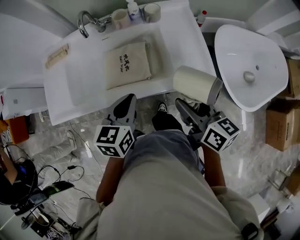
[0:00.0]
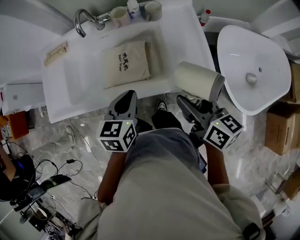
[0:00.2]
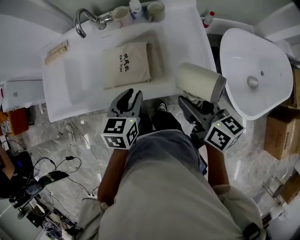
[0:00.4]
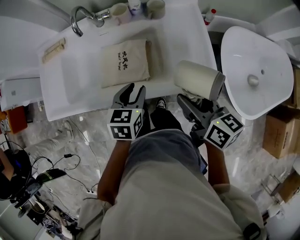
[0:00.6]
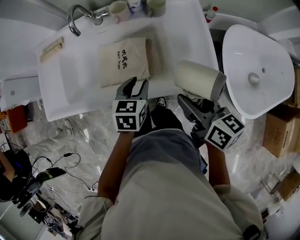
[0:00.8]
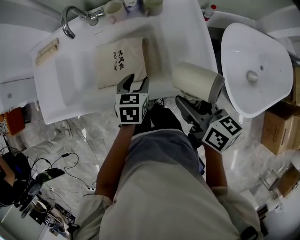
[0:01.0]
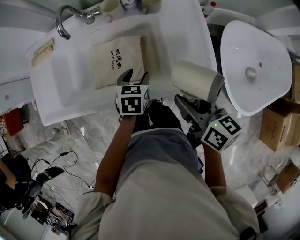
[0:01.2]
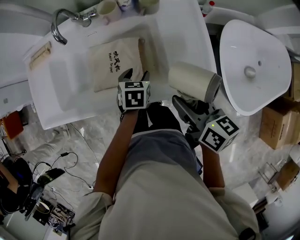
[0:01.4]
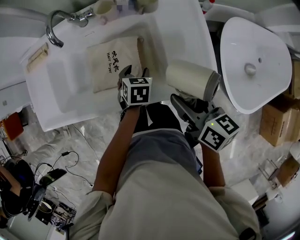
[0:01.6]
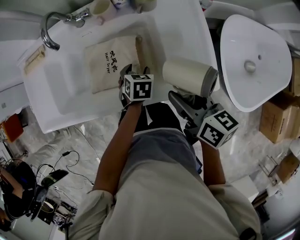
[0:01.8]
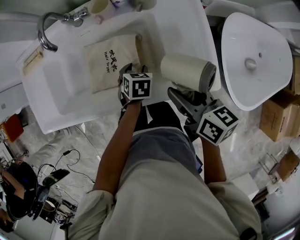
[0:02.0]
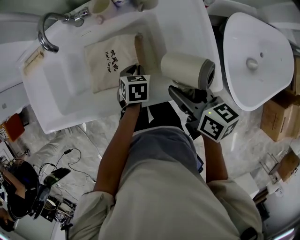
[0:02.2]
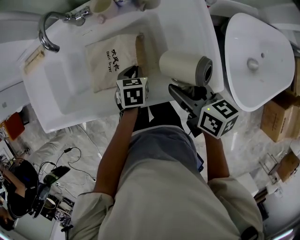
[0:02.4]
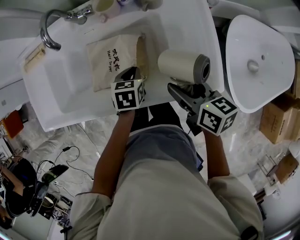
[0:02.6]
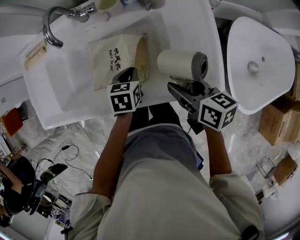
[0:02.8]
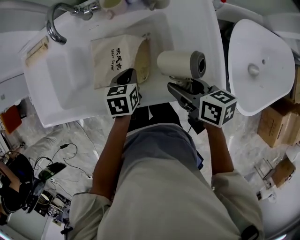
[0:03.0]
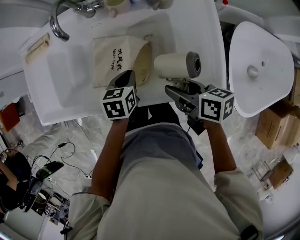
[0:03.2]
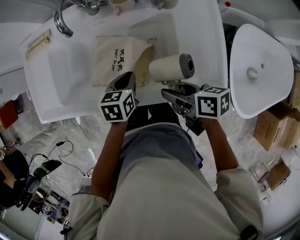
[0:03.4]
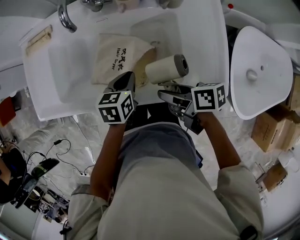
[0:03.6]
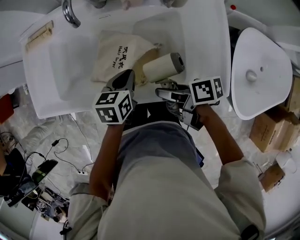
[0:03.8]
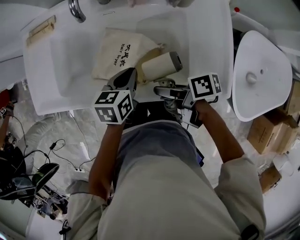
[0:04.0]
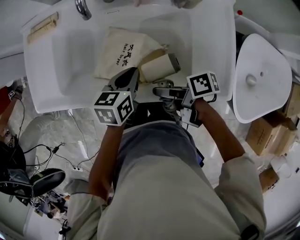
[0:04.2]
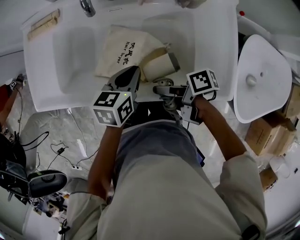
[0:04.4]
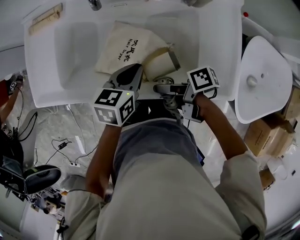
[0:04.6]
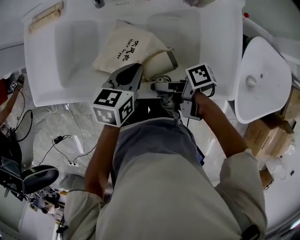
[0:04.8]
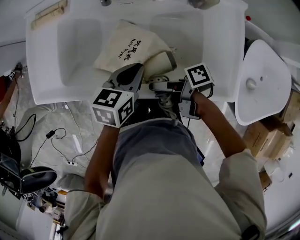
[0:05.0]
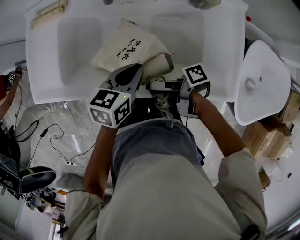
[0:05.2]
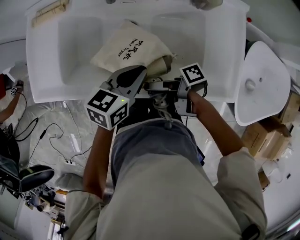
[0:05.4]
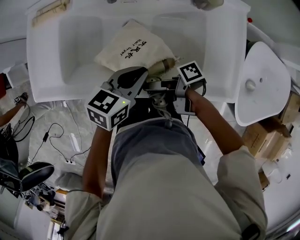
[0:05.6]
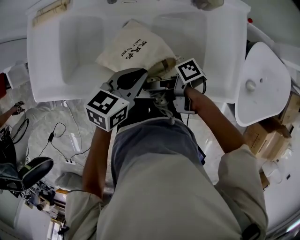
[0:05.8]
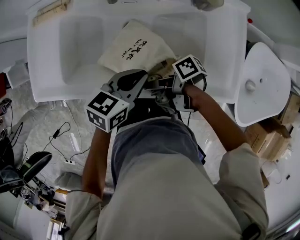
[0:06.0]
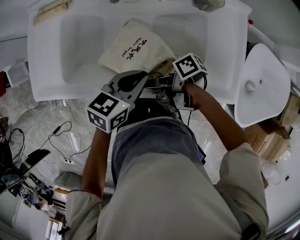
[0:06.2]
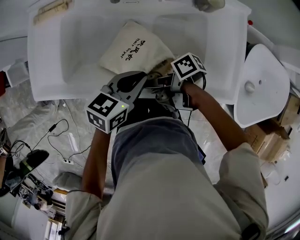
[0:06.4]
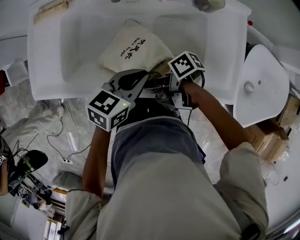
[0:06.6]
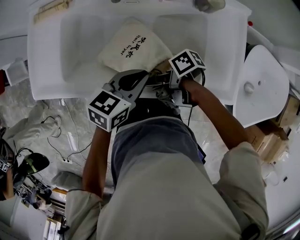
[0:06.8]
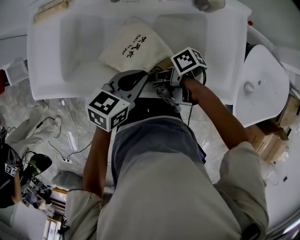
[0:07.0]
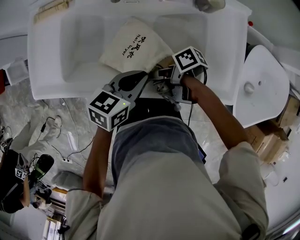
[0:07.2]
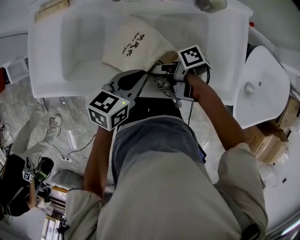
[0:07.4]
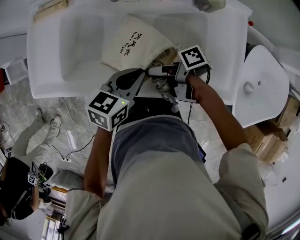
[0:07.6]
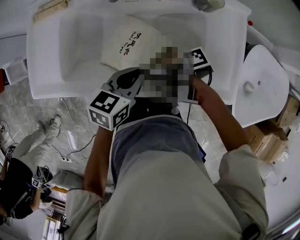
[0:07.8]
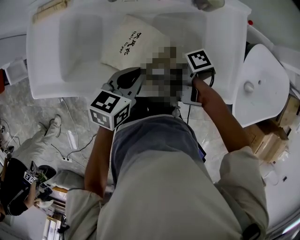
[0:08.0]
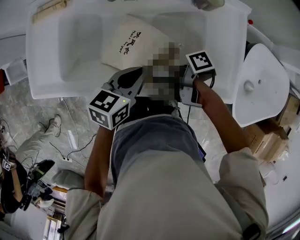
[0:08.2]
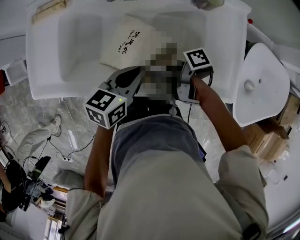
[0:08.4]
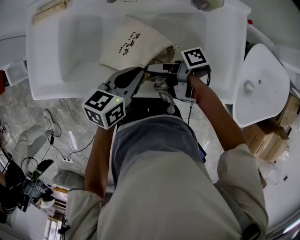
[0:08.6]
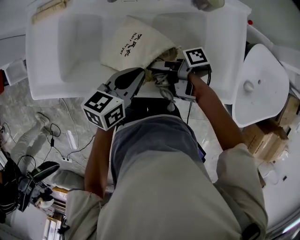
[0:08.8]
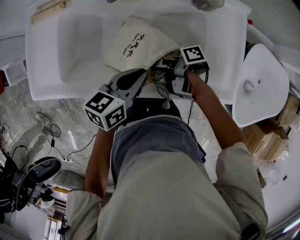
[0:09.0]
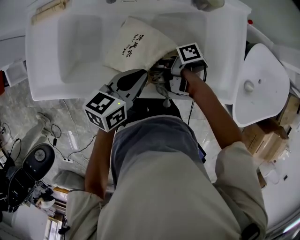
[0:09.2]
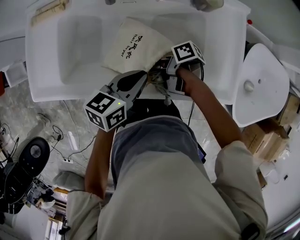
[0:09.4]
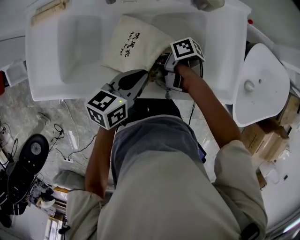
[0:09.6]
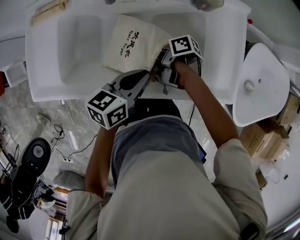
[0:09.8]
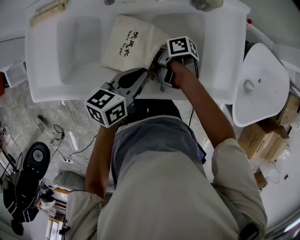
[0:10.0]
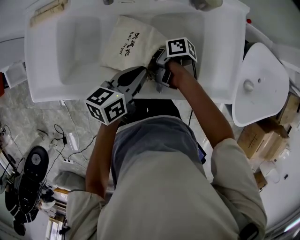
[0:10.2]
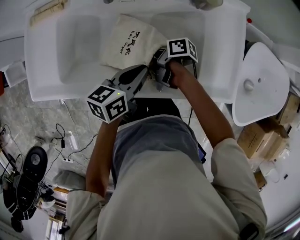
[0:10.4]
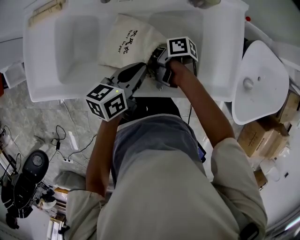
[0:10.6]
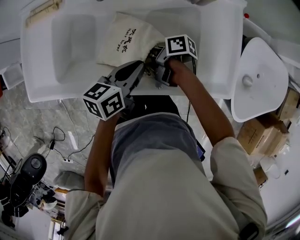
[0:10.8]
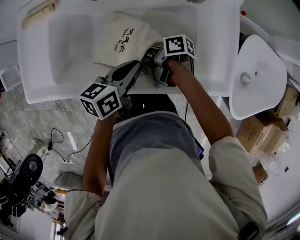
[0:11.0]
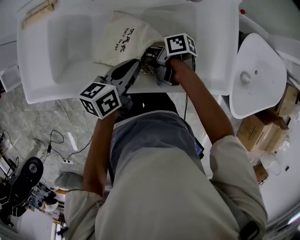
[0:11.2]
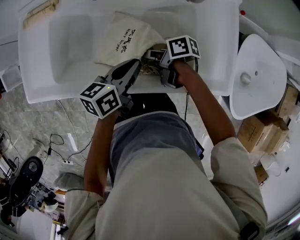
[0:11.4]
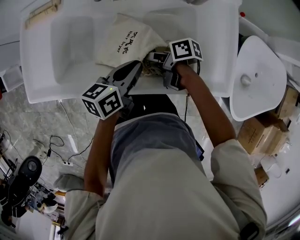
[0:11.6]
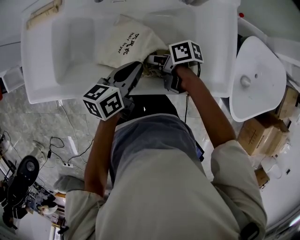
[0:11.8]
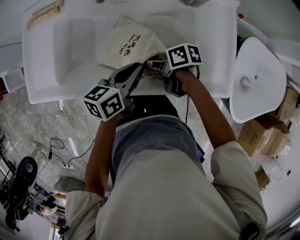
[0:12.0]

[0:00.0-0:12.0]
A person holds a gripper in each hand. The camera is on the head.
0:00.0 to 0:01.6: The left gripper shifts about 20 cm downward, swivels approximately 30 degrees, and opens up.
0:01.6 to 0:03.0: The left gripper moves about 5 cm, and closes up.
0:03.0 to 0:04.4: The left gripper changes place by roughly 10 cm.

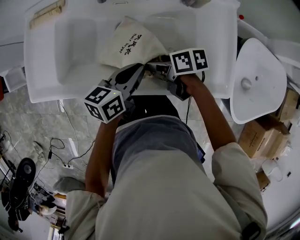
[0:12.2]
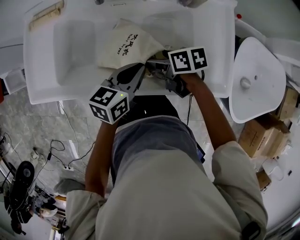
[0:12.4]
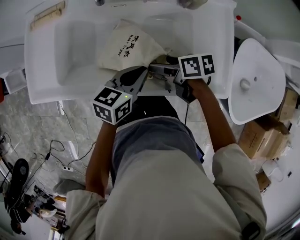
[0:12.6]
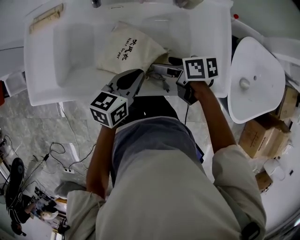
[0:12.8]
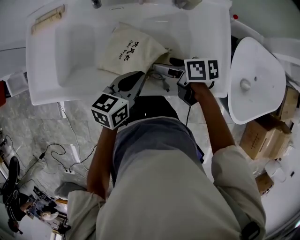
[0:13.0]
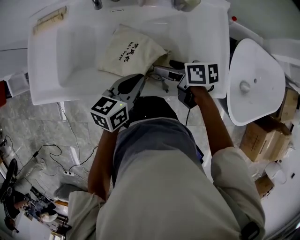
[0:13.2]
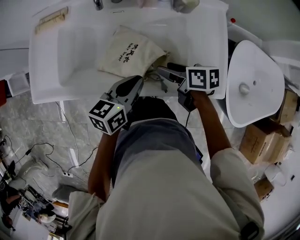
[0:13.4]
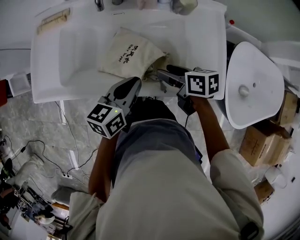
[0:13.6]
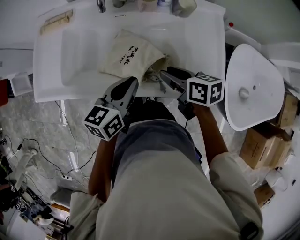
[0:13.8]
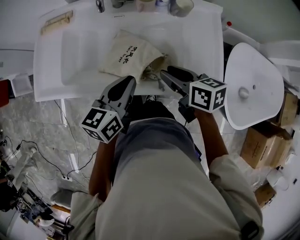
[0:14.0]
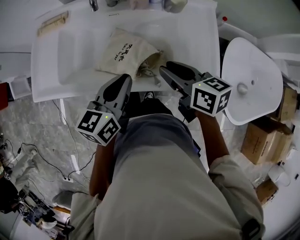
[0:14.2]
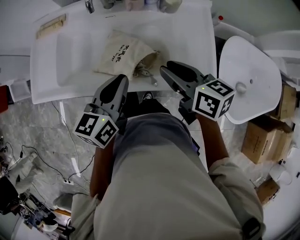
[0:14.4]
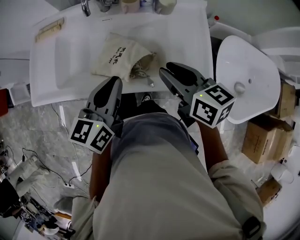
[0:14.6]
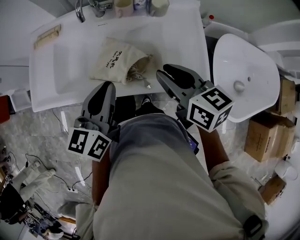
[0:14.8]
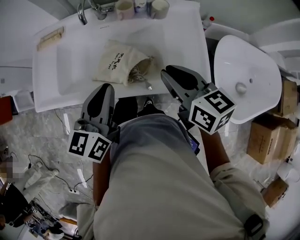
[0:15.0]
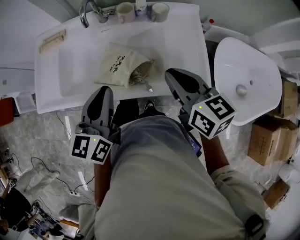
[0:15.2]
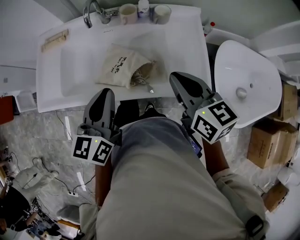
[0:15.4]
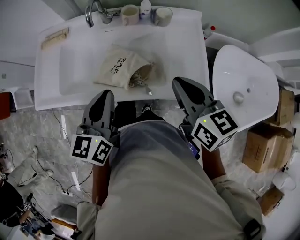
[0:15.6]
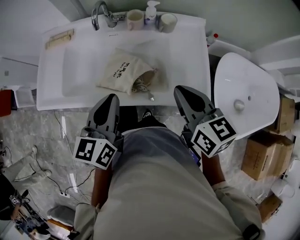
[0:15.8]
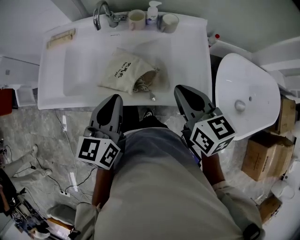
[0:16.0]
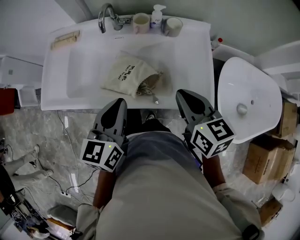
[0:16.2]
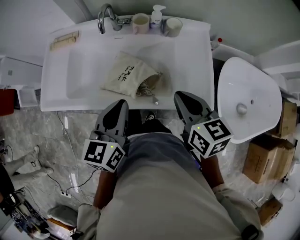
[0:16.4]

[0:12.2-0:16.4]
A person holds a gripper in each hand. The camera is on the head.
0:12.2 to 0:13.6: The left gripper changes place by roughly 5 cm.
0:13.6 to 0:15.0: The left gripper travels upward by roughly 15 cm, and rotates about 20 degrees.

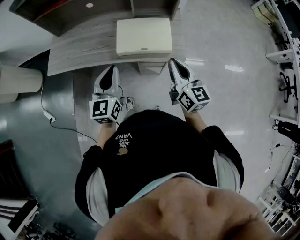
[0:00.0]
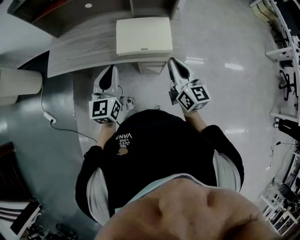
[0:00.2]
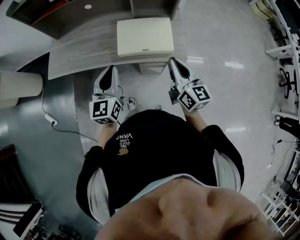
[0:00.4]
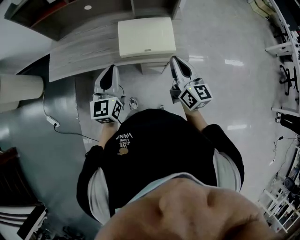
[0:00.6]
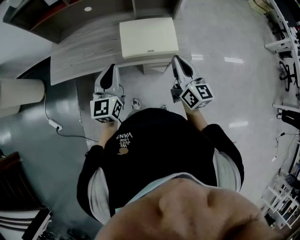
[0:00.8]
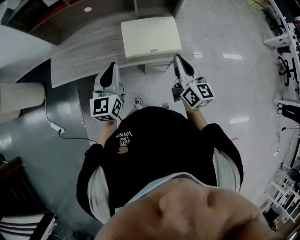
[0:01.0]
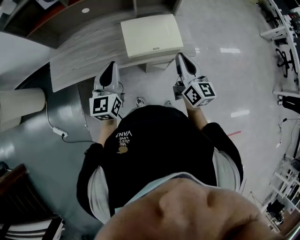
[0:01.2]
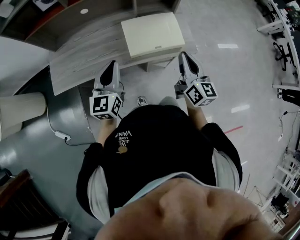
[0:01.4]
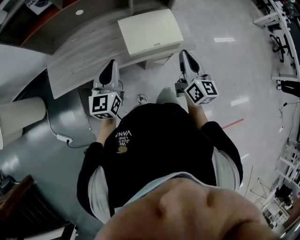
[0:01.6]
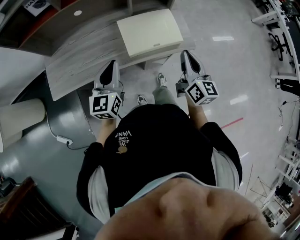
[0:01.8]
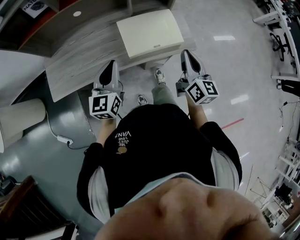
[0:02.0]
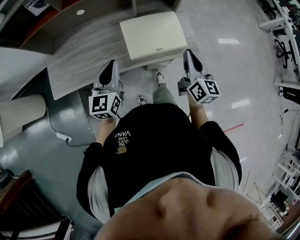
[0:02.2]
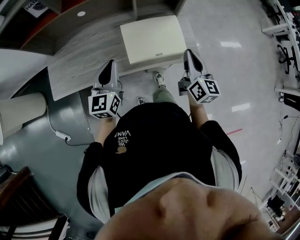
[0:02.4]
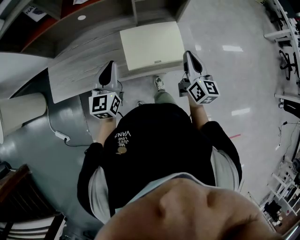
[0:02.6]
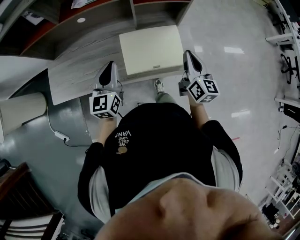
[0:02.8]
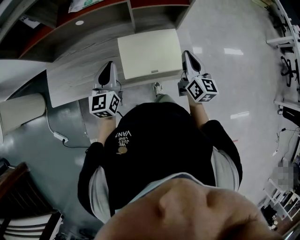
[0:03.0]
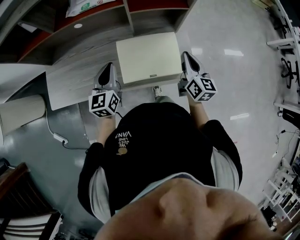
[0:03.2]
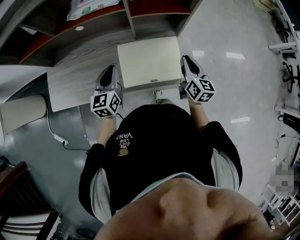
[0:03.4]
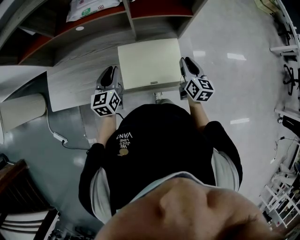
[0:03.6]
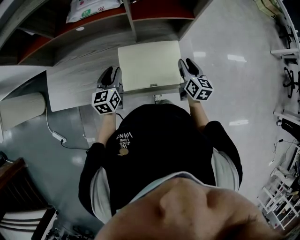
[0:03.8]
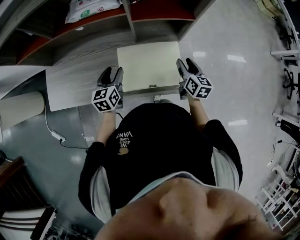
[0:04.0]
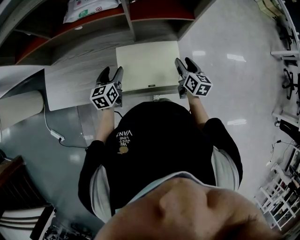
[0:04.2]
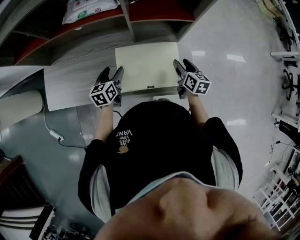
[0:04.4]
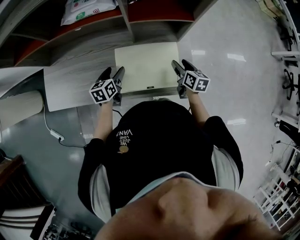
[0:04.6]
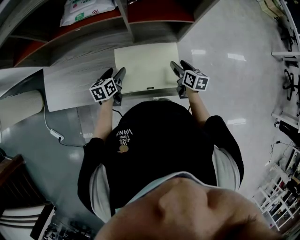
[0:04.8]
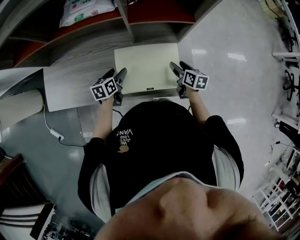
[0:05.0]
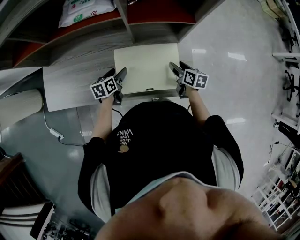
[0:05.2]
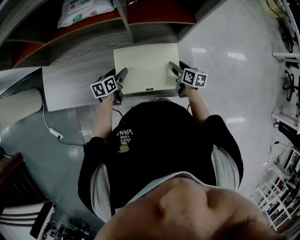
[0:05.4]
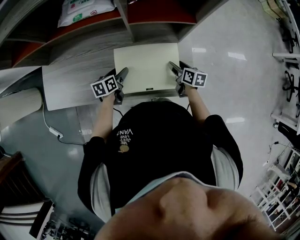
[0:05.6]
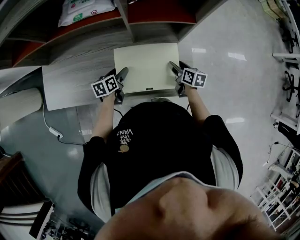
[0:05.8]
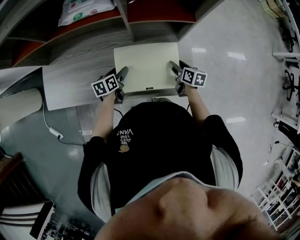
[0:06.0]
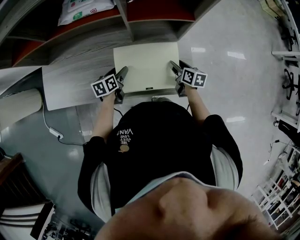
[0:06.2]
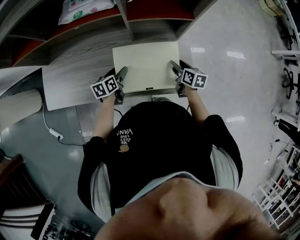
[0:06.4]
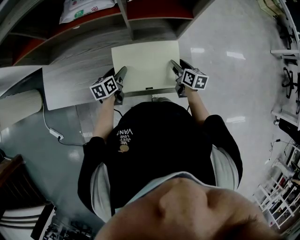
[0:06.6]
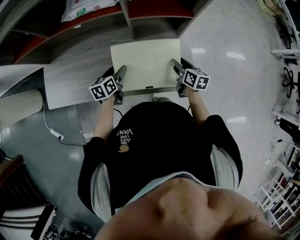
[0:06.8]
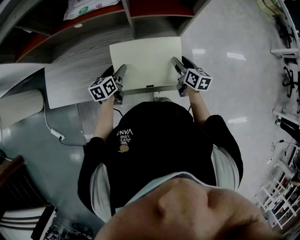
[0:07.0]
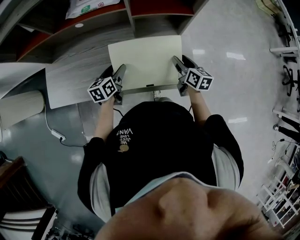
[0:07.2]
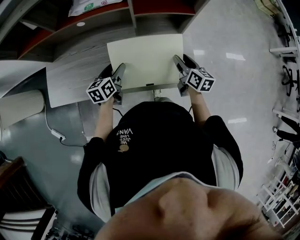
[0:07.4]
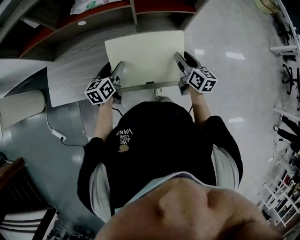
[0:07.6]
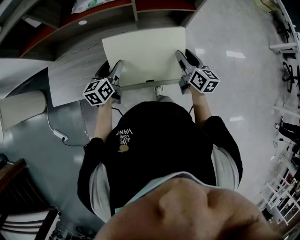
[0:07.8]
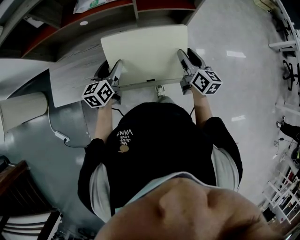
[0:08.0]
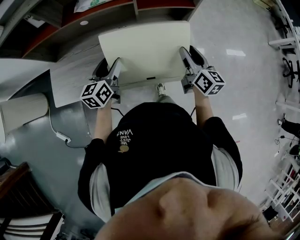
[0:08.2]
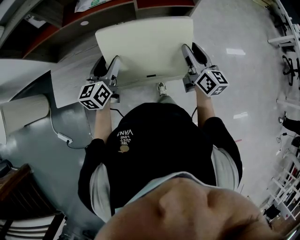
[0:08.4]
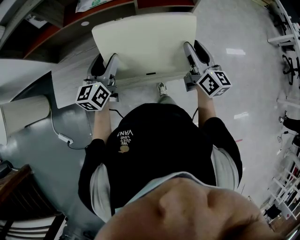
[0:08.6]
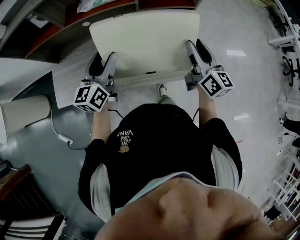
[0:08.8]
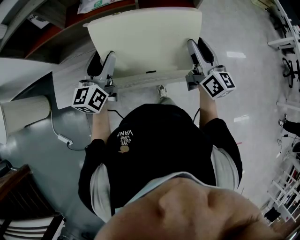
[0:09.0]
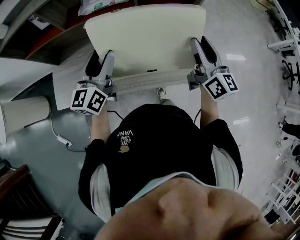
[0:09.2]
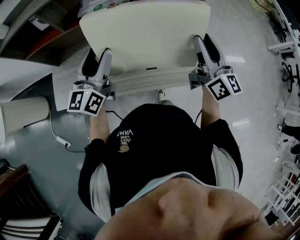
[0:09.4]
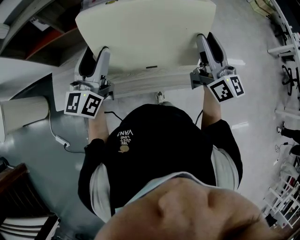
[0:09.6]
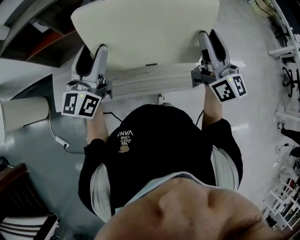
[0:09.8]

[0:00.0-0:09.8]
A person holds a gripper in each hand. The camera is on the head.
0:00.0 to 0:01.4: The right gripper moves to the left, roughly 5 cm, while the left gripper travels to the left and forward by about 10 cm.
0:01.4 to 0:02.8: Both grippers travel together forward, approximately 15 cm.
0:02.8 to 0:04.2: Both grippers move downward and forward, some 15 cm. The right gripper turns by some 20 degrees, and opens its fingers, while the left gripper changes its angle by some 30 degrees, and opens up.
0:04.2 to 0:05.6: Both grippers move downward, some 10 cm. The right gripper changes its angle by about 20 degrees, while the left gripper swivels some 20 degrees.
0:05.6 to 0:07.0: Both grippers move upward, approximately 5 cm.
0:07.0 to 0:08.4: The grippers both shift upward by some 15 cm. The left gripper turns by some 30 degrees. Meanwhile the right gripper turns by about 30 degrees.
0:08.4 to 0:09.8: The two grippers go approximately 20 cm upward. The right gripper turns by some 20 degrees; the left gripper swivels approximately 30 degrees.
